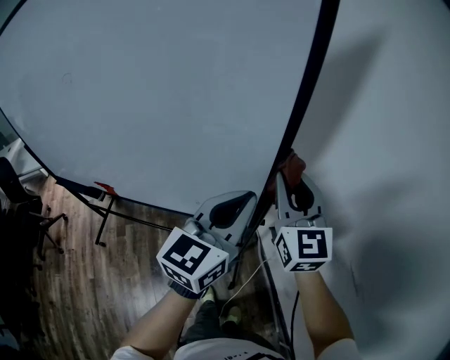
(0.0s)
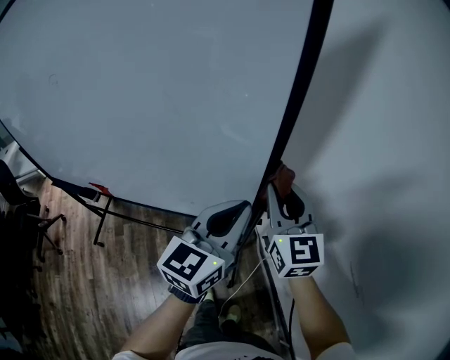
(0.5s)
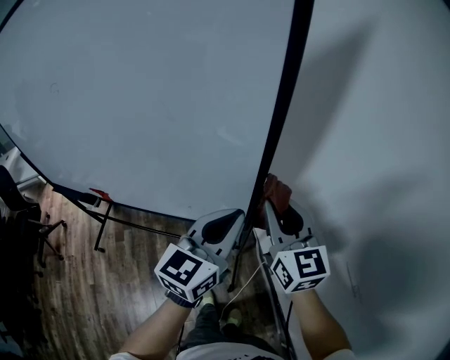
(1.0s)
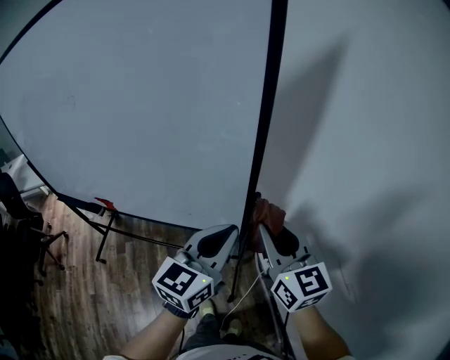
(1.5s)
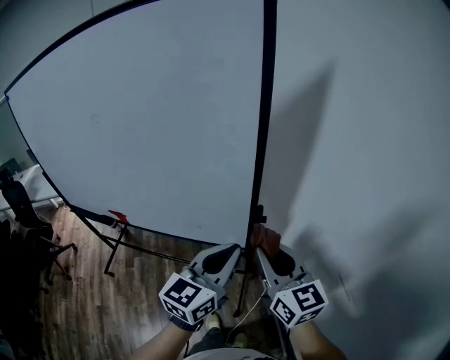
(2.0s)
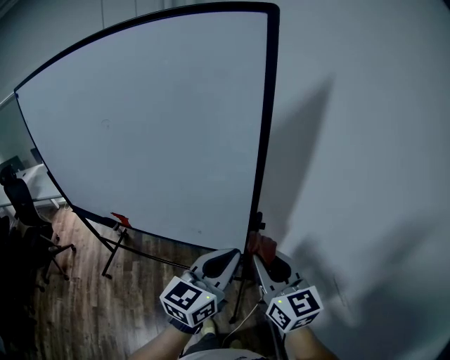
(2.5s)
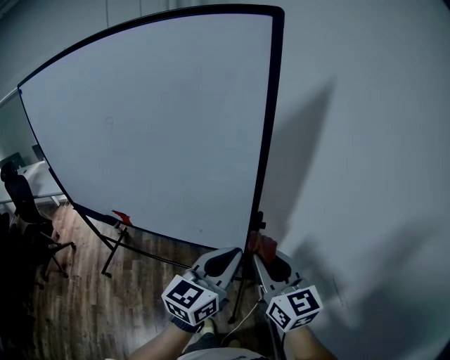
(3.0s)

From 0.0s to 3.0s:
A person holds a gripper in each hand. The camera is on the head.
From 0.0s to 1.5s: The left gripper moves backward, about 5 cm. Meanwhile the right gripper moves backward, roughly 10 cm.
From 1.5s to 3.0s: The two grippers go about 5 cm backward.

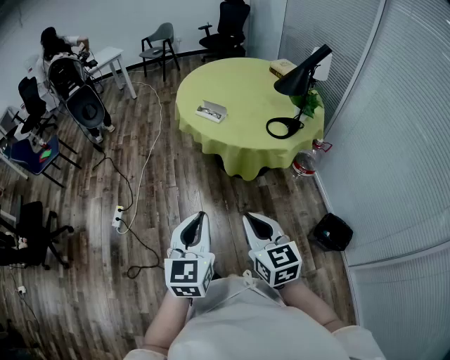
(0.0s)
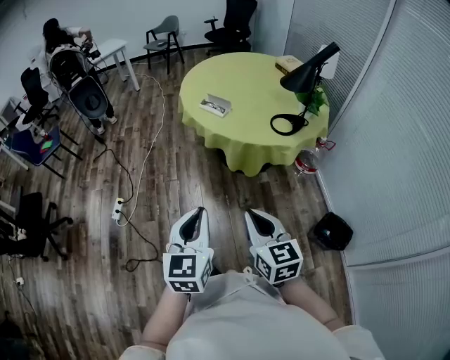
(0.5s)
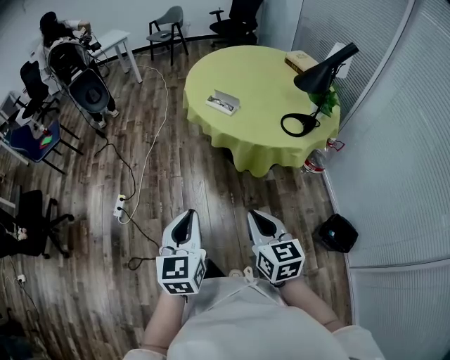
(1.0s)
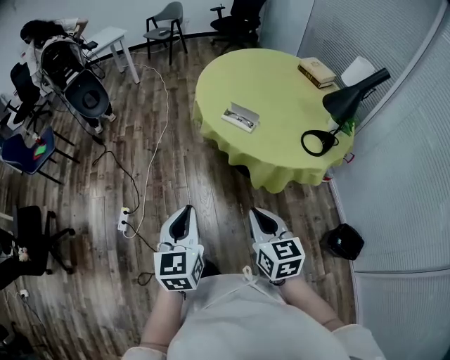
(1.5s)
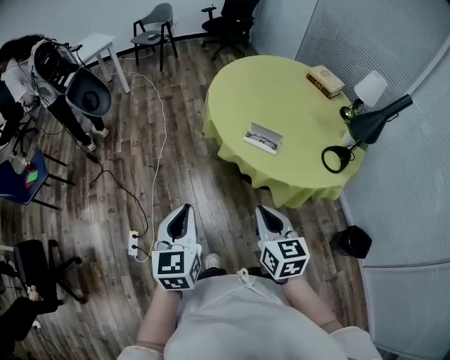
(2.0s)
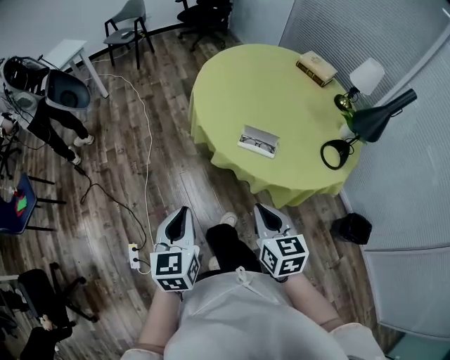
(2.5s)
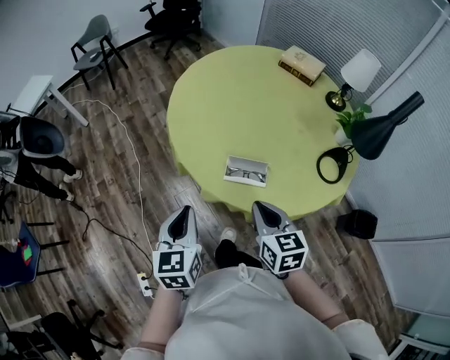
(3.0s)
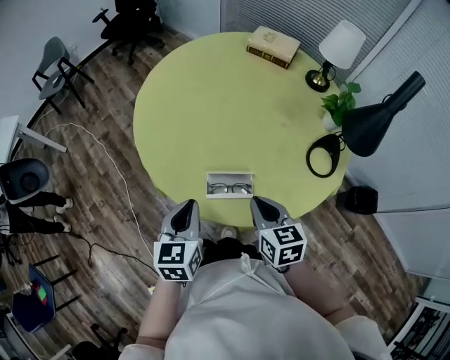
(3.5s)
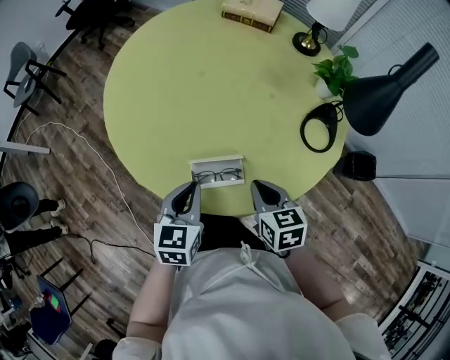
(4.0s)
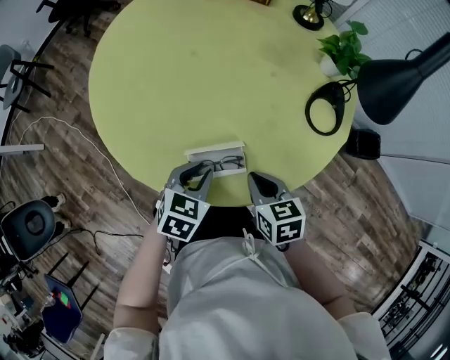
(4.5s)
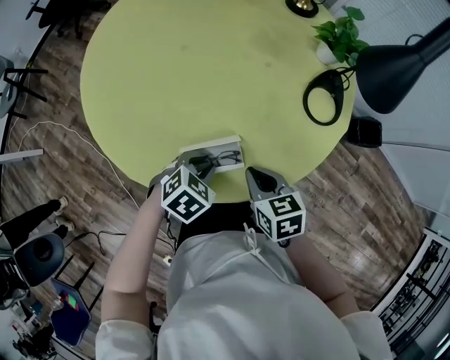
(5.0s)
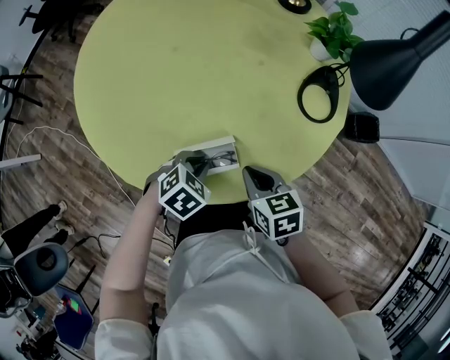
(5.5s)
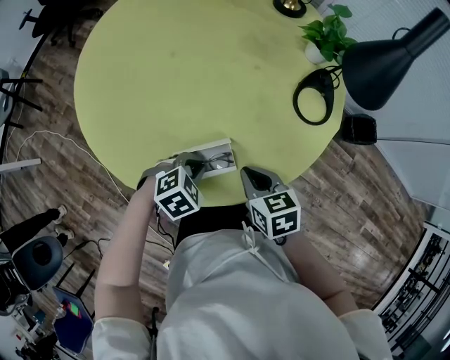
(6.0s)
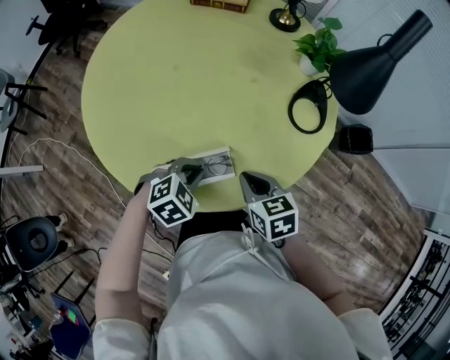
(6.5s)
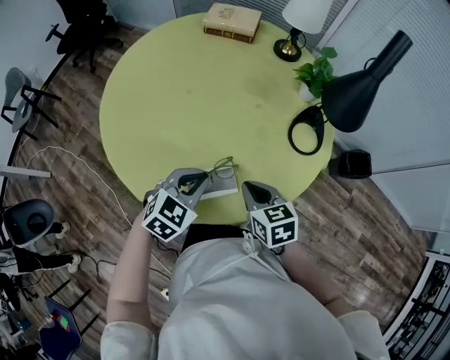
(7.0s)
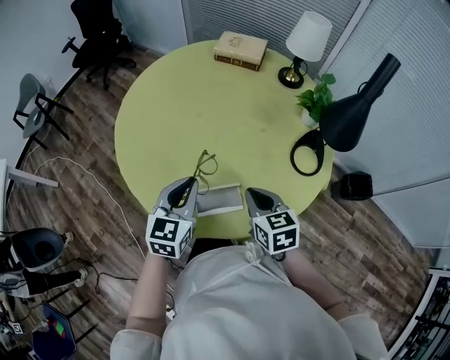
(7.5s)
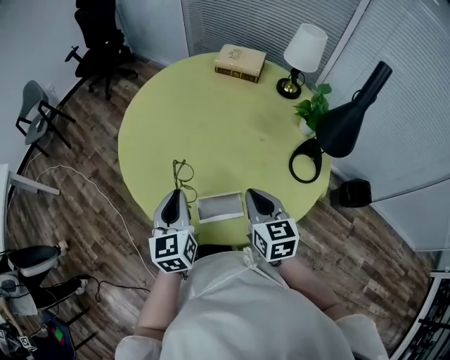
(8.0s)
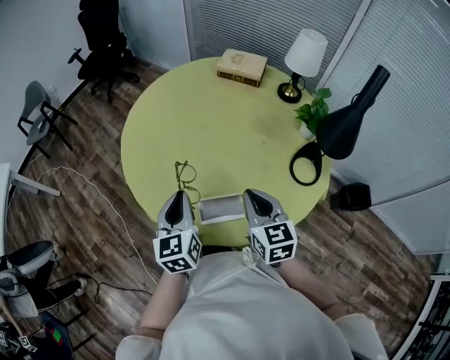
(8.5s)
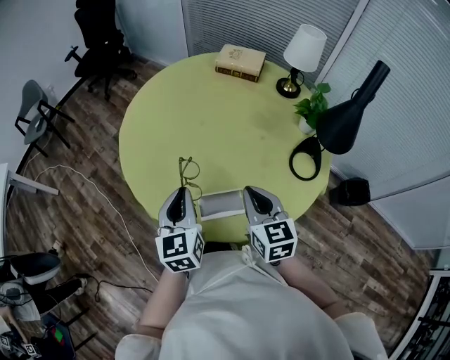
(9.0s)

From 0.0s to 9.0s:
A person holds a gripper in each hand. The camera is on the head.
From 0.0s to 2.0s: Both grippers are carried forward and to the left, about 50 cm.
From 2.0s to 4.5s: The left gripper ends up about 60 cm from where it was, and tilts its fingers some 30 degrees downward. Meanwhile the right gripper moves some 40 cm, and changes its angle by roughly 40 degrees.
From 4.5s to 7.0s: The grippers both shift upward by approximately 5 cm. The left gripper swivels approximately 30 degrees.
From 7.0s to 9.0s: The left gripper moves to the left and upward, approximately 15 cm, and rotates about 60 degrees. Meanwhile the right gripper goes some 10 cm upward, and swivels roughly 20 degrees.

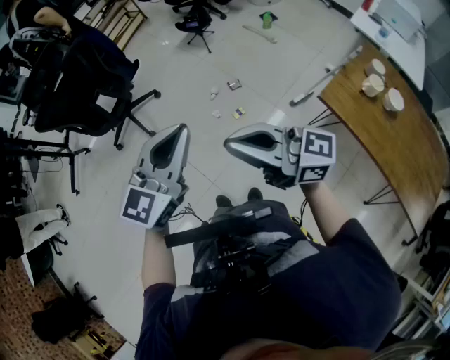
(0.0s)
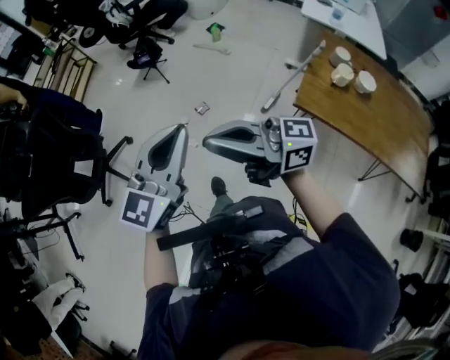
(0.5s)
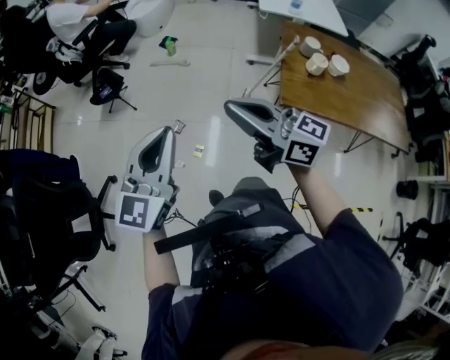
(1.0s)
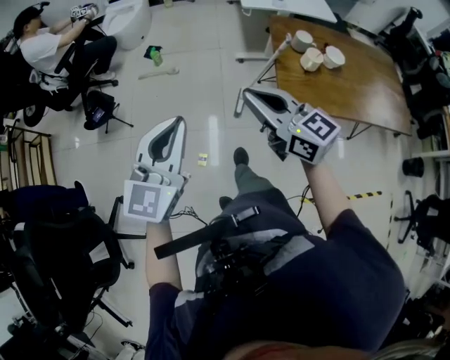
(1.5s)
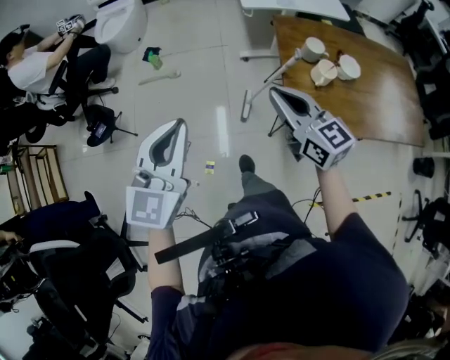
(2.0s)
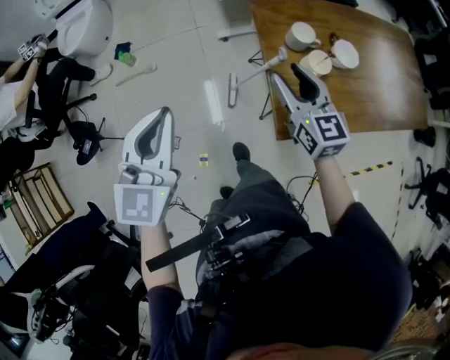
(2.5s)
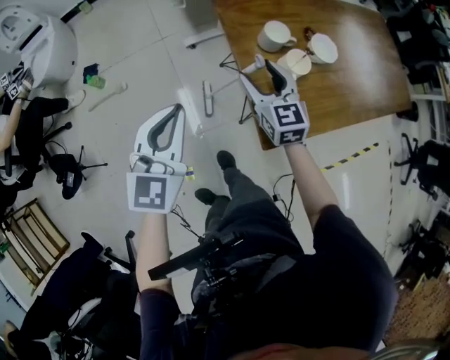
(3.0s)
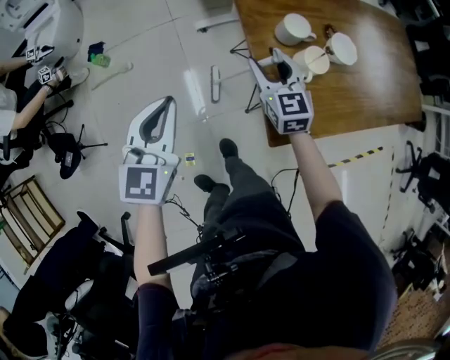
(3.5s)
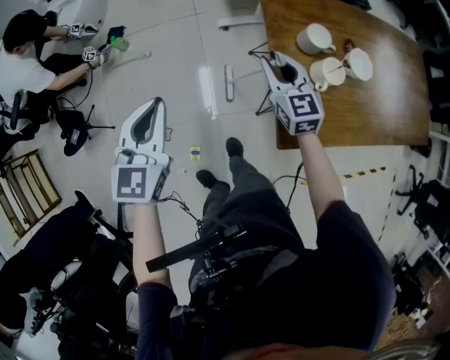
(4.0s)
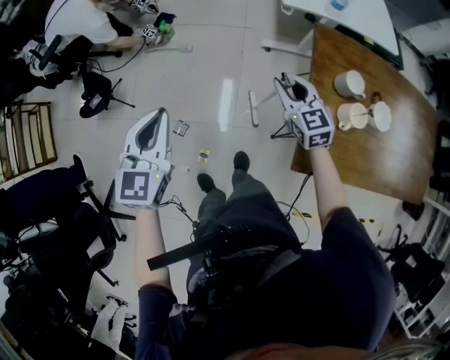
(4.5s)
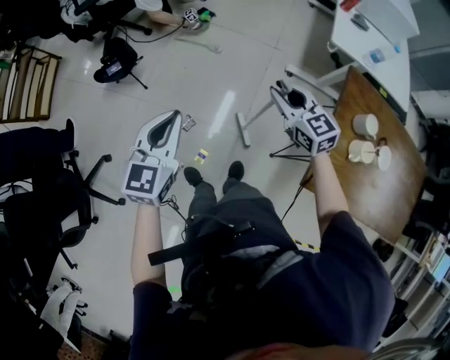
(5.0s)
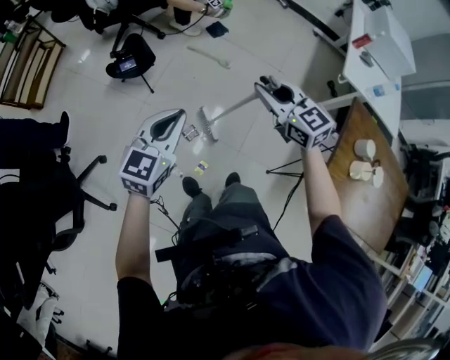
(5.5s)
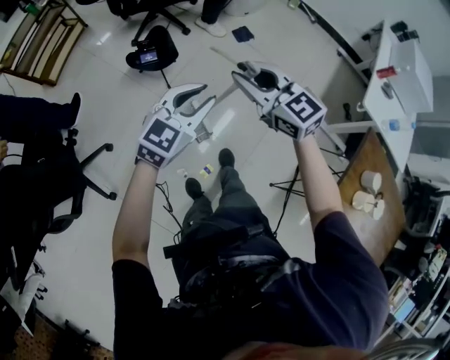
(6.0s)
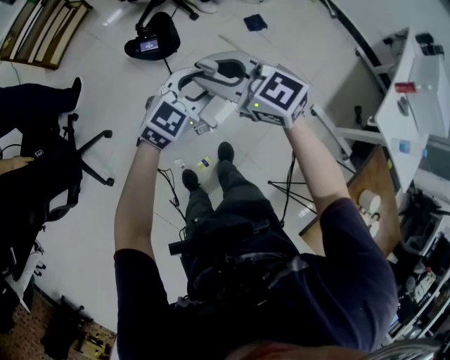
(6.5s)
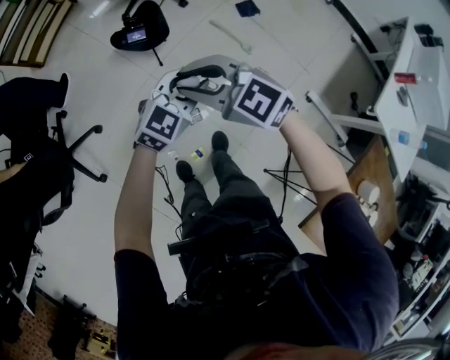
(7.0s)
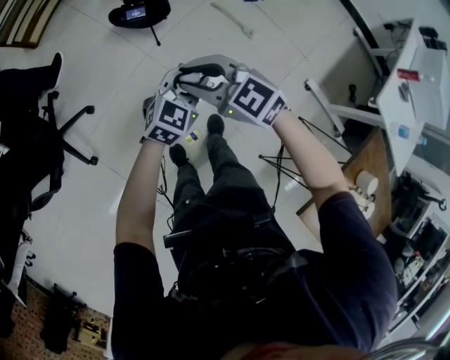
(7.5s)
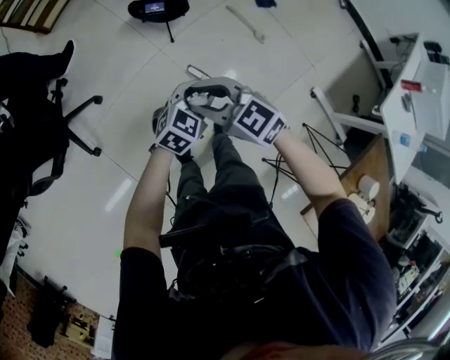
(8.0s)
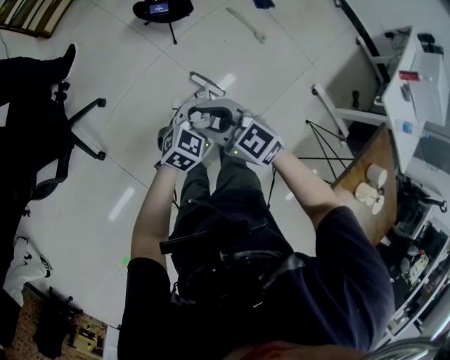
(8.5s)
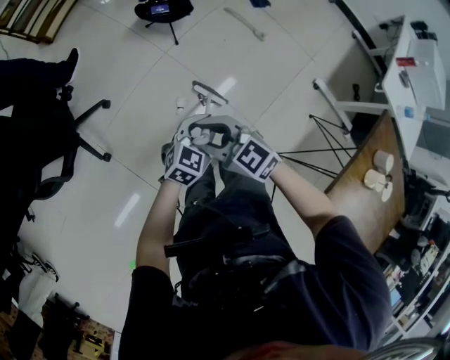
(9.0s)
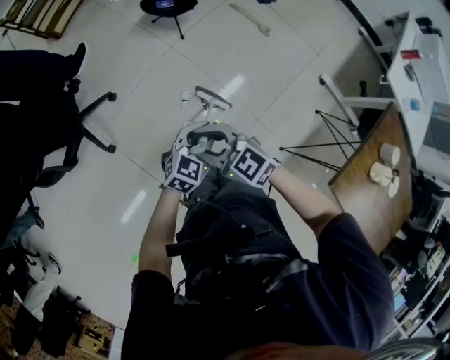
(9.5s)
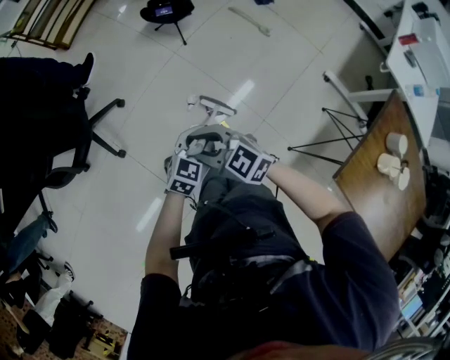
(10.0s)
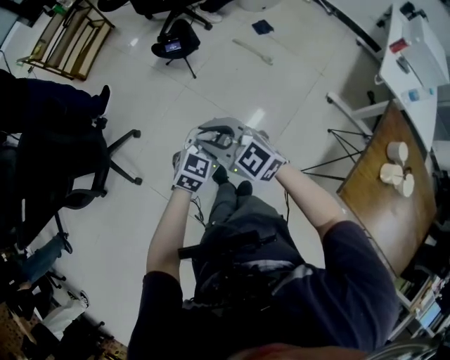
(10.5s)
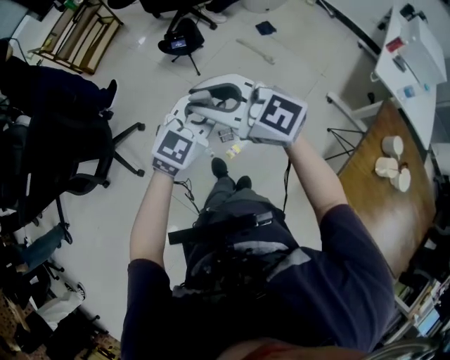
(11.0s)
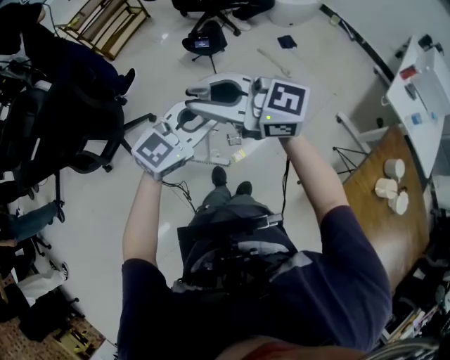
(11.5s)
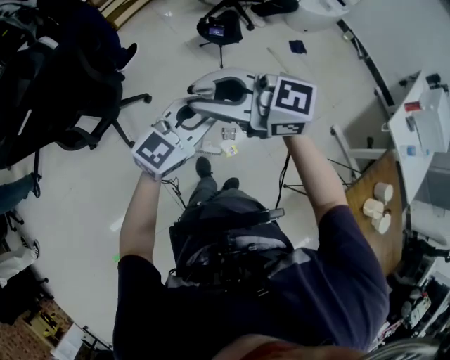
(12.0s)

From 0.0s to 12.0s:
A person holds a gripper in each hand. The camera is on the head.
From 0.0s to 2.0s: The pair of grippers is taken about 50 cm. The left gripper changes its angle by about 40 degrees. Meanwhile the right gripper rotates some 90 degrees.
From 2.0s to 4.0s: The left gripper moves about 25 cm. Meanwhile the right gripper ends up approximately 30 cm from where it was, turns by approximately 30 degrees, and opens and closes again.
From 4.0s to 6.0s: The left gripper ends up some 40 cm from where it was, and opens; the right gripper shifts by roughly 60 cm, and rotates about 70 degrees.
From 6.0s to 8.0s: The left gripper goes roughly 20 cm downward, and swivels about 20 degrees, while the right gripper shifts approximately 20 cm downward, to the left and backward, and rotates roughly 30 degrees.
From 8.0s to 10.0s: The two grippers go some 25 cm backward and to the left.
From 10.0s to 12.0s: Both grippers travel together upward, approximately 25 cm. The left gripper changes its angle by about 30 degrees. Meanwhile the right gripper swivels some 30 degrees.

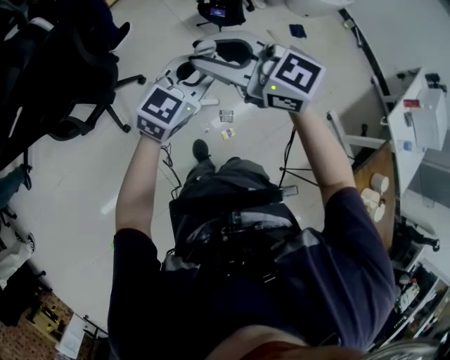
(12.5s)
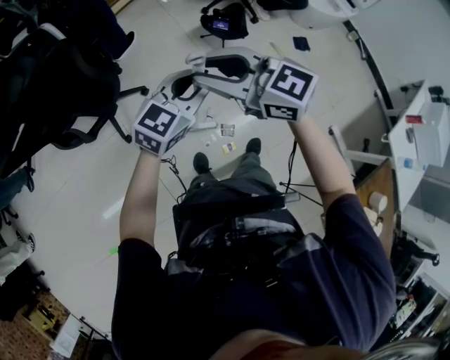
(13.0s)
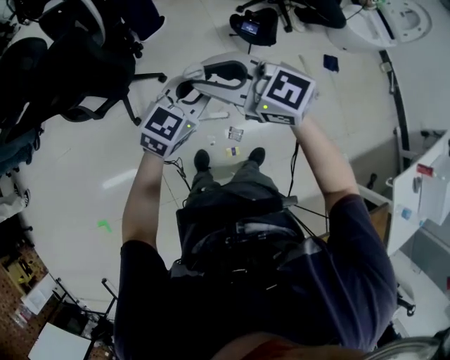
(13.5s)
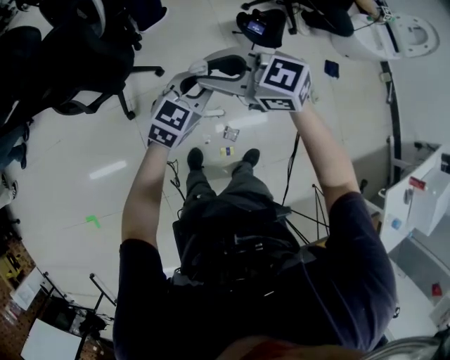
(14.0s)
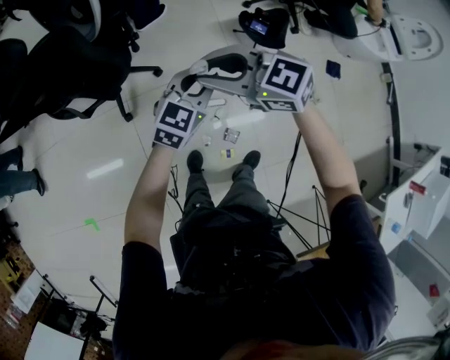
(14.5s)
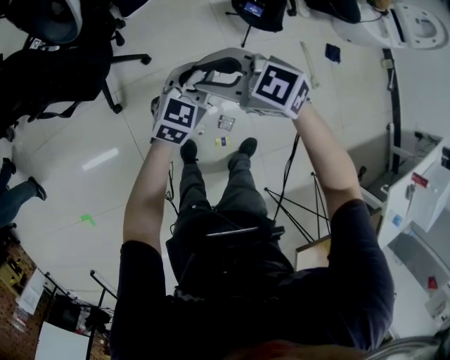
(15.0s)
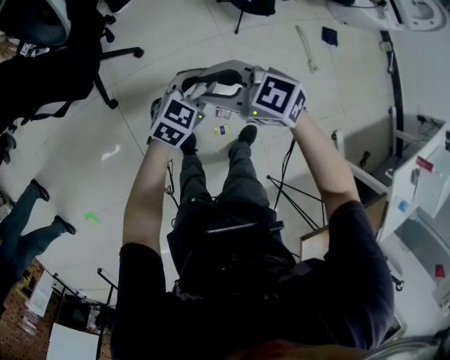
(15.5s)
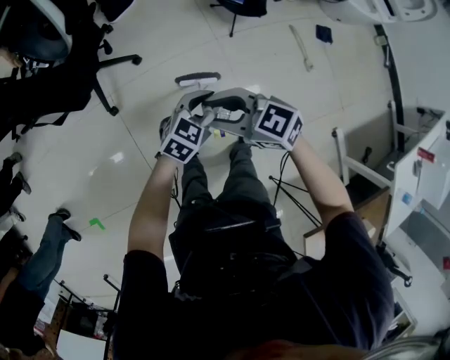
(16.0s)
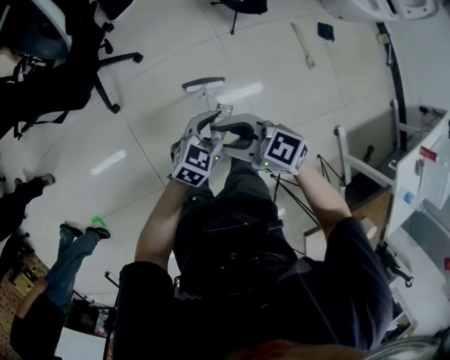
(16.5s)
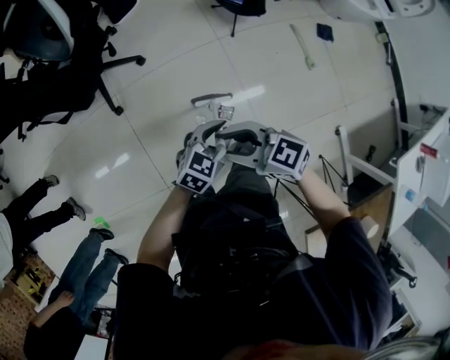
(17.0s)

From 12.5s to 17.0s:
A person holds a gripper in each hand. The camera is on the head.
From 12.5s to 14.5s: The left gripper shifts by some 20 cm, and turns by roughly 30 degrees; the right gripper is displaced downward by some 15 cm, and swivels some 30 degrees.
From 14.5s to 17.0s: The right gripper changes place by roughly 25 cm, and swivels roughly 20 degrees; the left gripper moves about 30 cm, and turns by roughly 20 degrees.
